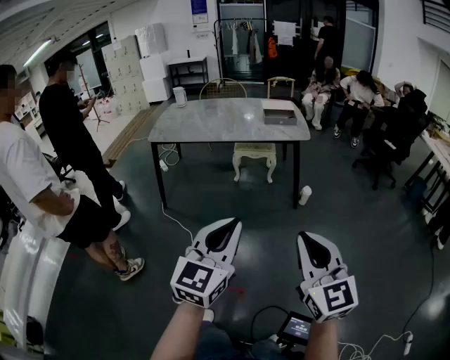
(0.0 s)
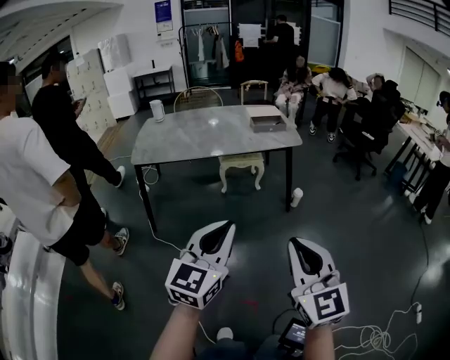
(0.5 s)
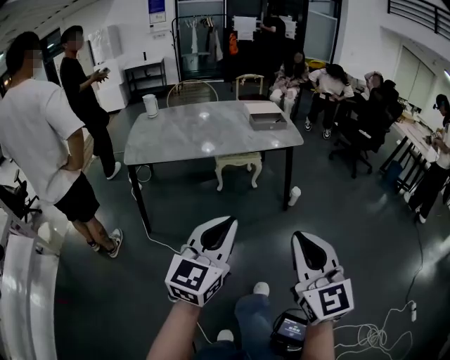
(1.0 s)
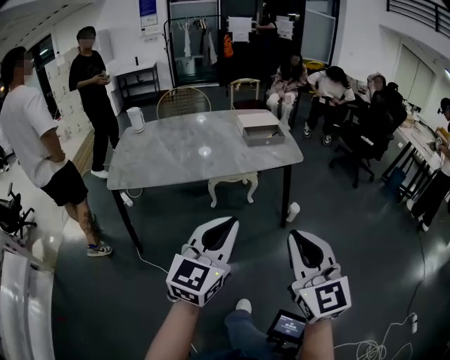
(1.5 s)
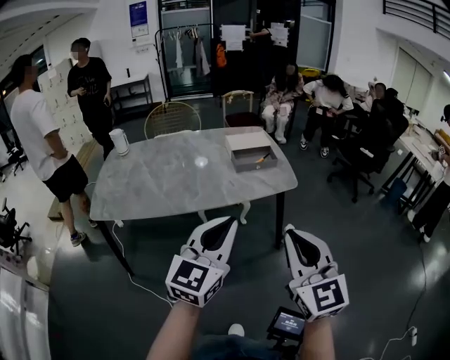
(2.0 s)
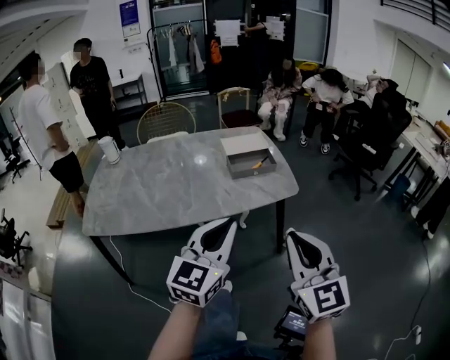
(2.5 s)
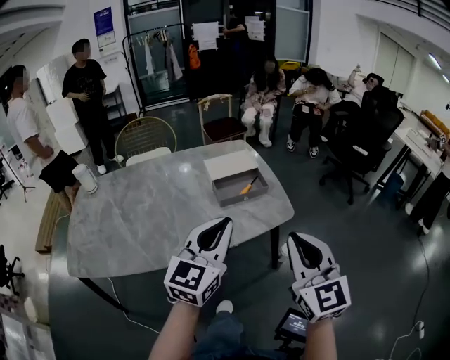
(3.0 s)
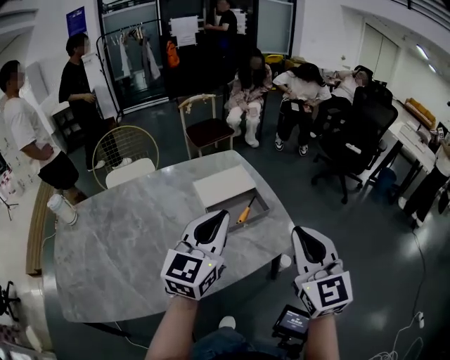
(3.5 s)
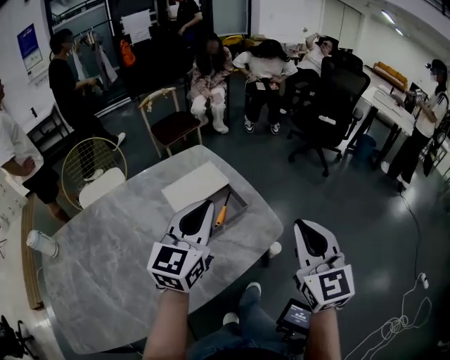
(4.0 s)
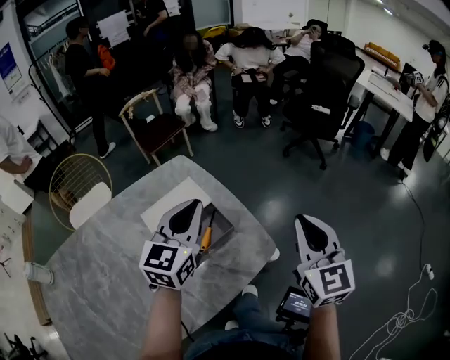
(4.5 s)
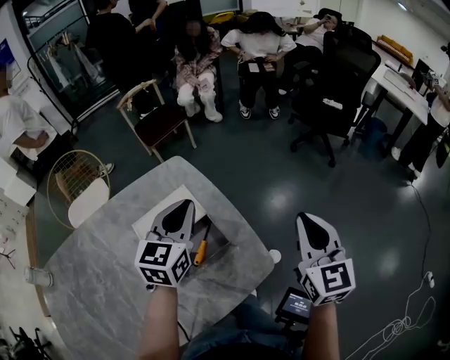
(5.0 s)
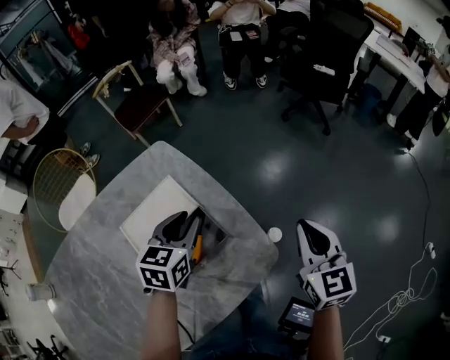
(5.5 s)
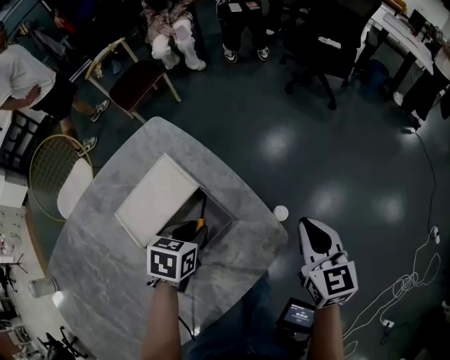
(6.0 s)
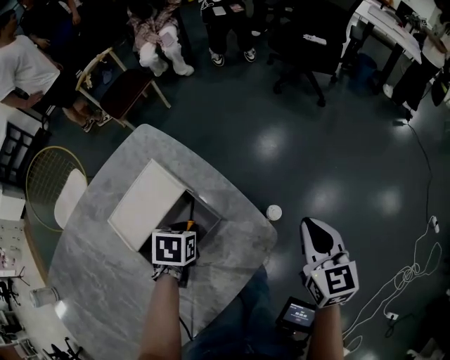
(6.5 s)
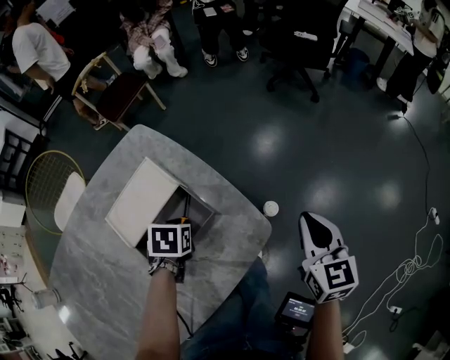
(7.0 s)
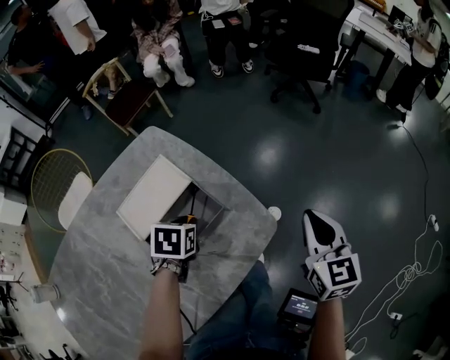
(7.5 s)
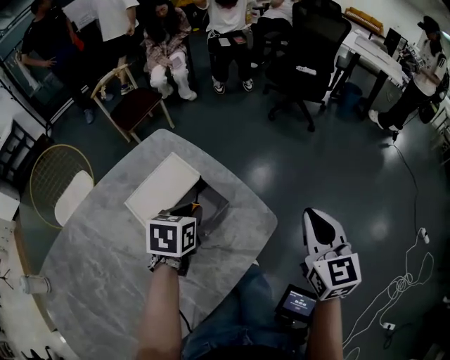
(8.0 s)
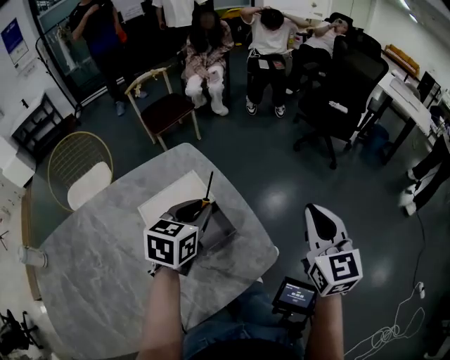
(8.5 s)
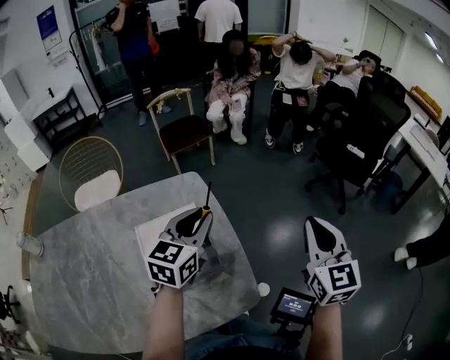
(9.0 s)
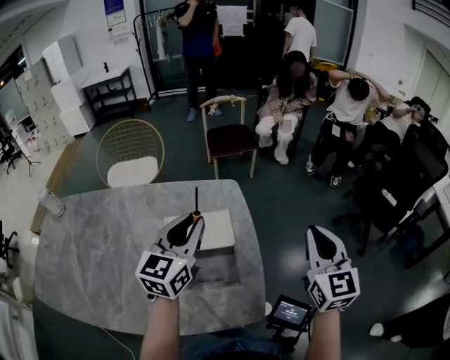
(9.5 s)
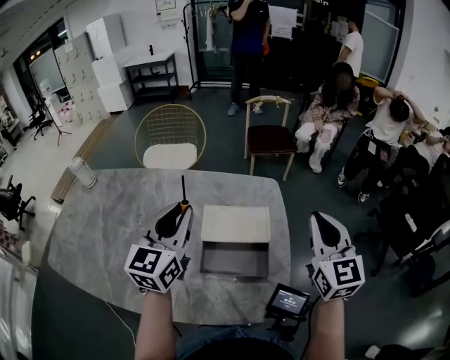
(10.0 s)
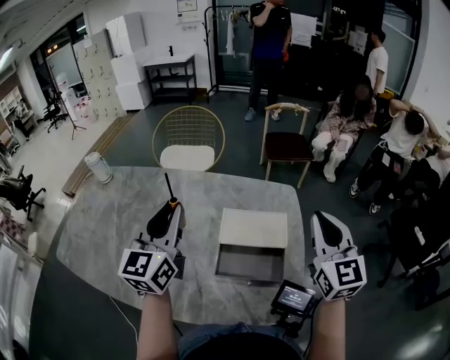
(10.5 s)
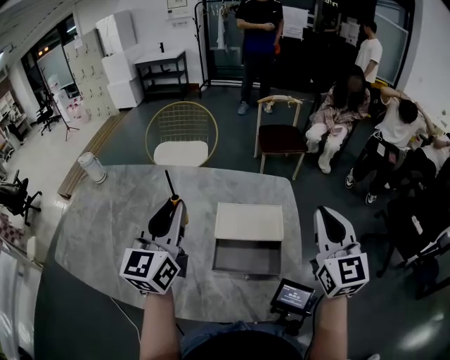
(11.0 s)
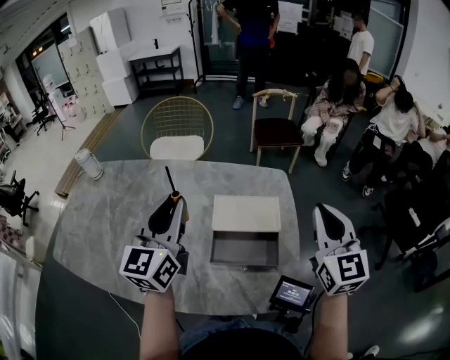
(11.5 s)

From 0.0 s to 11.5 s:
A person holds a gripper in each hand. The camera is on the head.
From 0.0 s to 2.0 s: Both grippers move forward, some 40 cm.
From 2.0 s to 4.0 s: Both grippers move forward, some 40 cm. The right gripper swivels approximately 30 degrees.
From 4.0 s to 6.0 s: The left gripper shifts some 30 cm downward, points its fingers roughly 50 degrees further downward, and opens up; the right gripper travels downward and forward by roughly 25 cm, and turns by about 30 degrees.
From 6.0 s to 7.5 s: The right gripper ends up about 5 cm from where it was.
From 7.5 s to 9.5 s: The left gripper moves upward, some 25 cm, and angles its fingers upward, by some 60 degrees, while the right gripper ends up approximately 25 cm from where it was, and turns by some 40 degrees.
From 9.5 s to 11.5 s: Both grippers travel together to the left, some 15 cm. The left gripper turns by roughly 20 degrees.

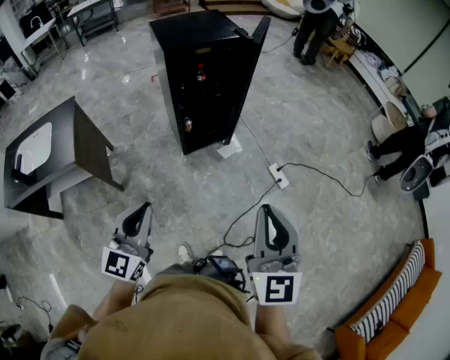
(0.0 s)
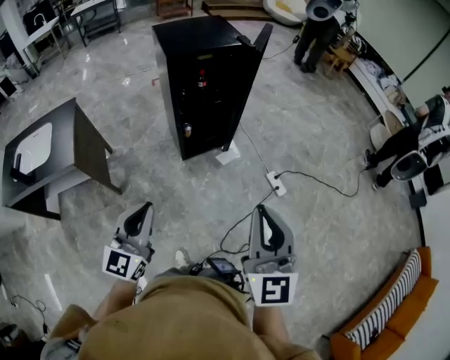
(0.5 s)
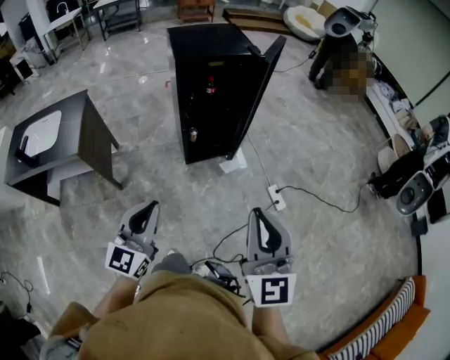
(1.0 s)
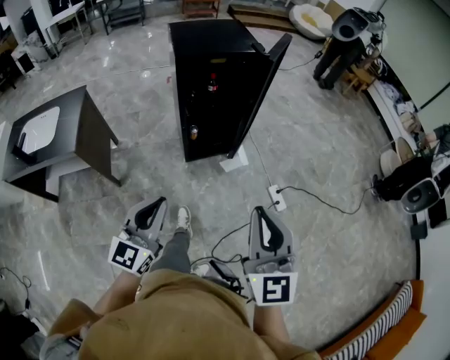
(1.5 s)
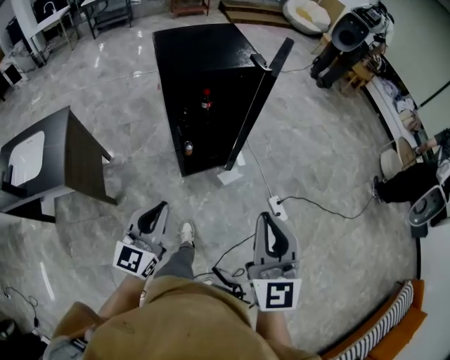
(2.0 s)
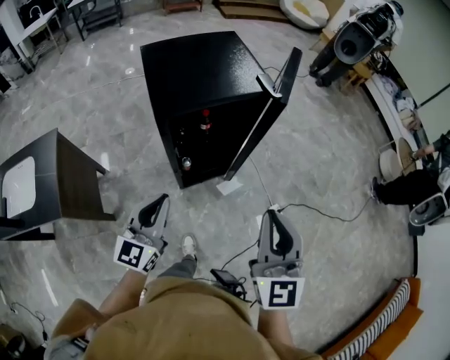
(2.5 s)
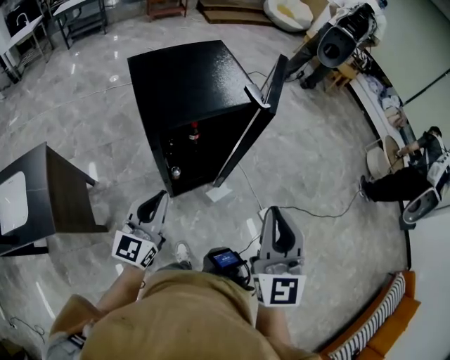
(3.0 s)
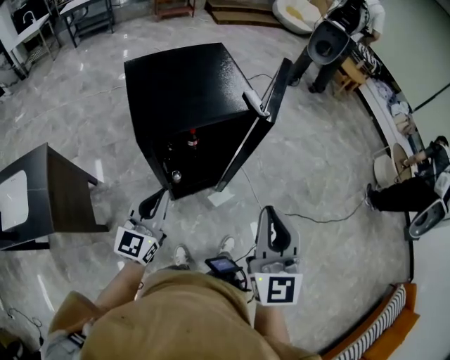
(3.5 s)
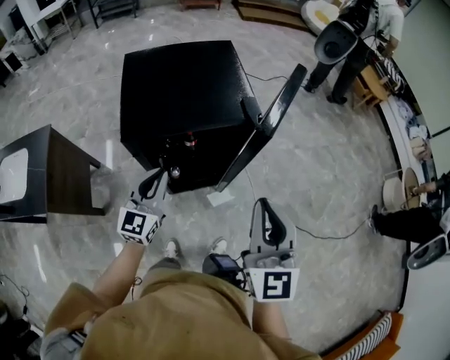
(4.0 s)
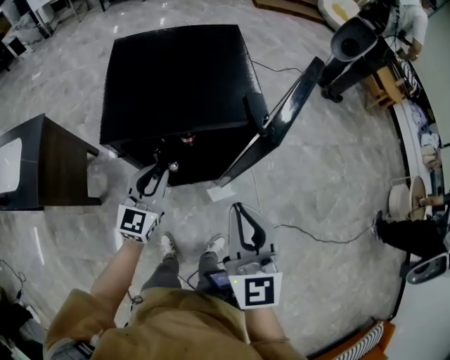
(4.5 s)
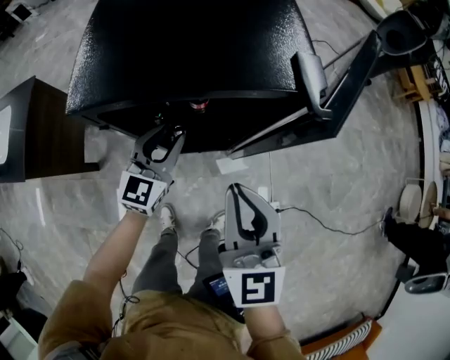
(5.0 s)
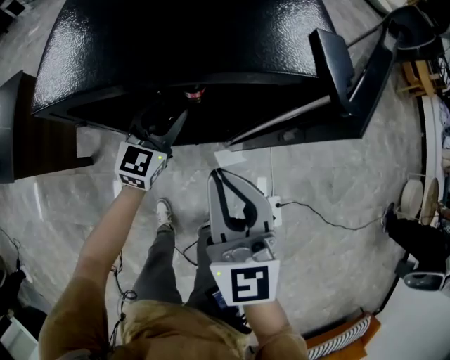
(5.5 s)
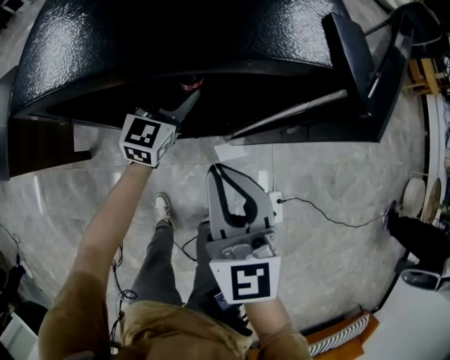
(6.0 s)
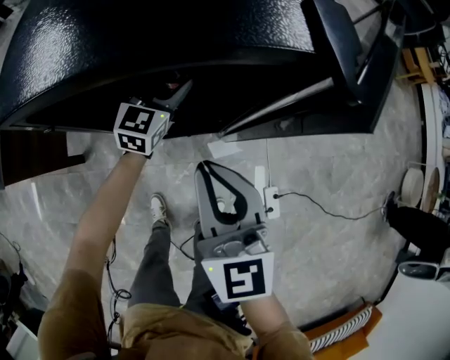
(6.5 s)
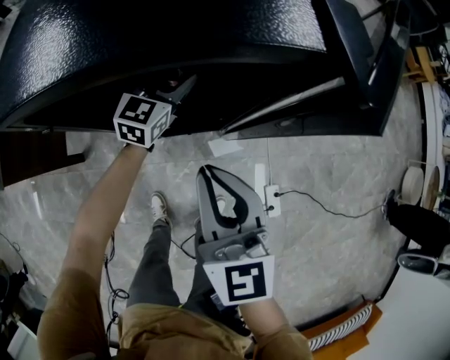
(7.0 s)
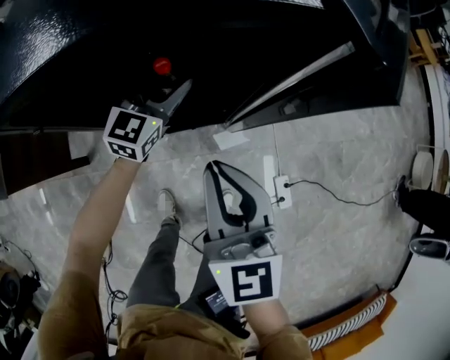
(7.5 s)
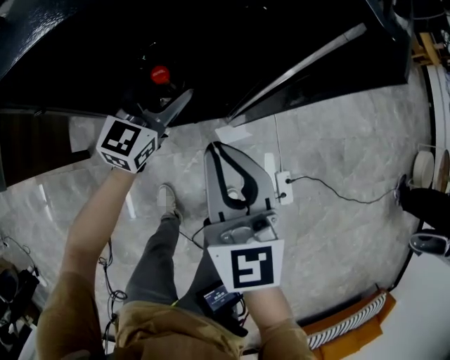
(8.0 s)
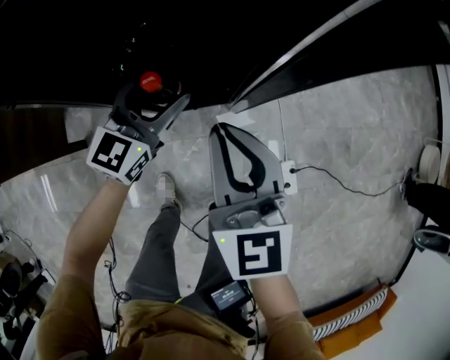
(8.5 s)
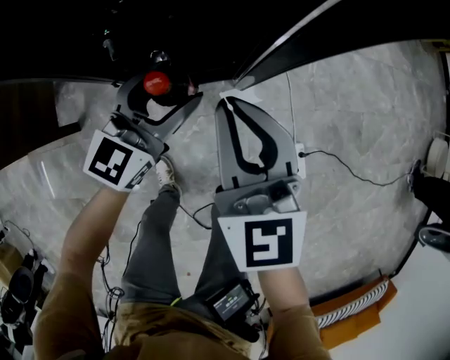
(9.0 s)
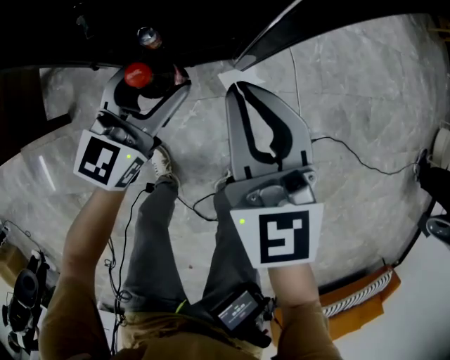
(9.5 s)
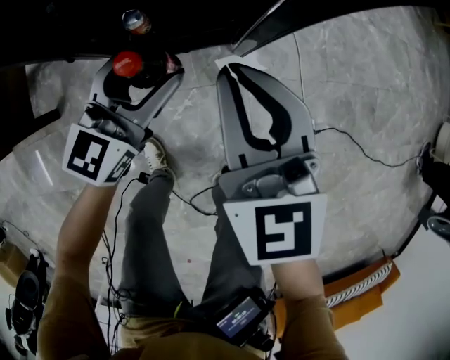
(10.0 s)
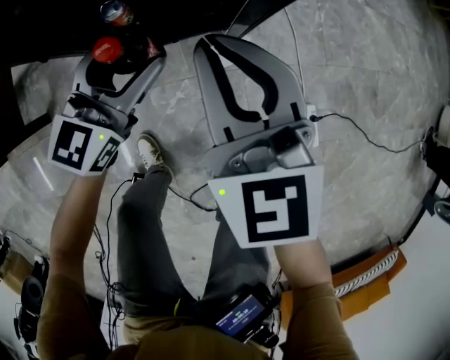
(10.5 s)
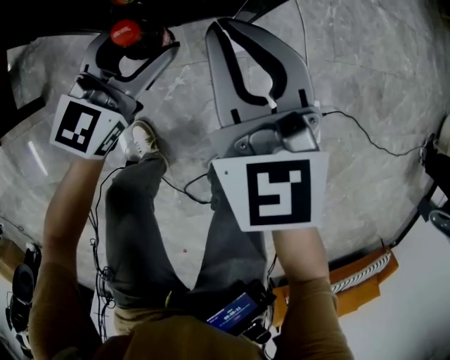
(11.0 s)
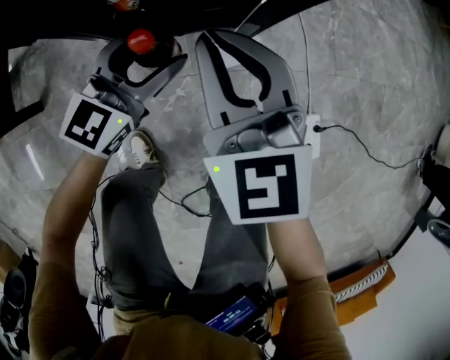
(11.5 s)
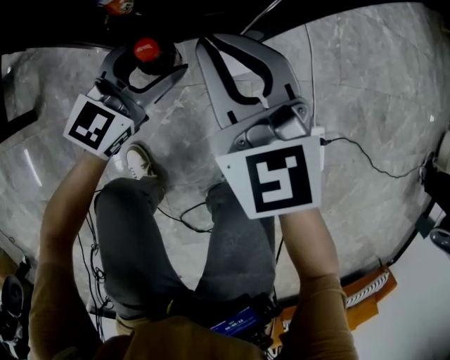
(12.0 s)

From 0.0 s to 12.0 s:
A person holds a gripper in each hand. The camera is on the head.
From 0.0 s to 2.0 s: Both grippers move forward, approximately 25 cm.
From 2.0 s to 4.0 s: Both grippers move forward, roughly 35 cm.
From 4.0 s to 6.0 s: The grippers both shift downward and forward by some 30 cm. The right gripper changes its angle by about 20 degrees. The left gripper opens up.
From 6.0 s to 8.0 s: The left gripper shifts about 5 cm backward.
From 8.0 s to 10.0 s: The left gripper heads downward and backward, covering roughly 25 cm. The right gripper shifts some 30 cm downward.
From 10.0 s to 12.0 s: Both grippers move downward, roughly 20 cm.

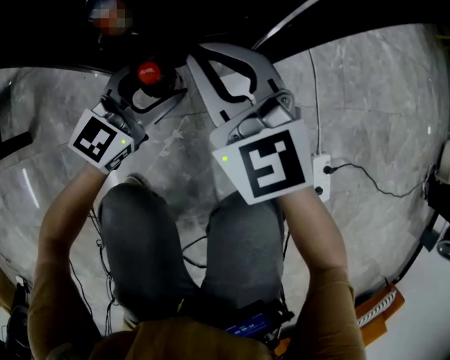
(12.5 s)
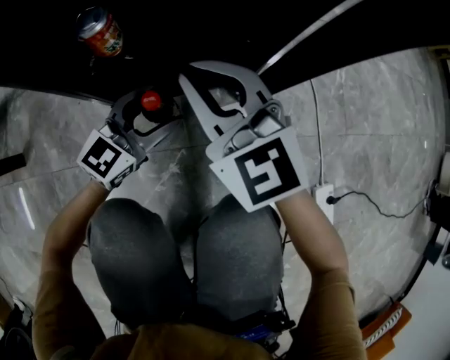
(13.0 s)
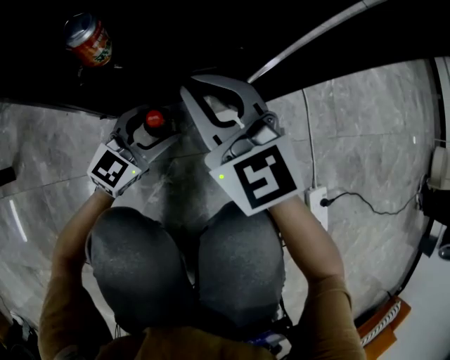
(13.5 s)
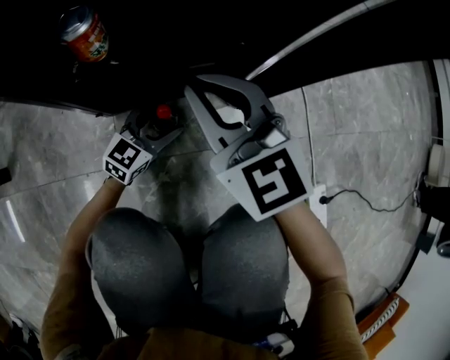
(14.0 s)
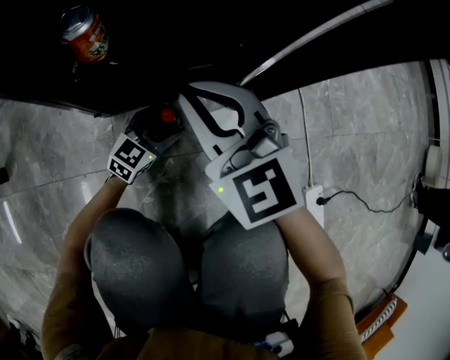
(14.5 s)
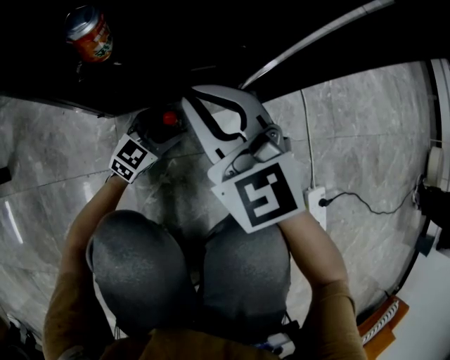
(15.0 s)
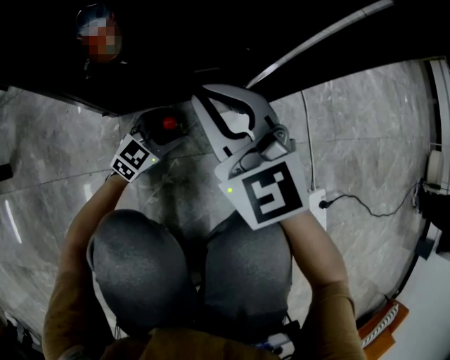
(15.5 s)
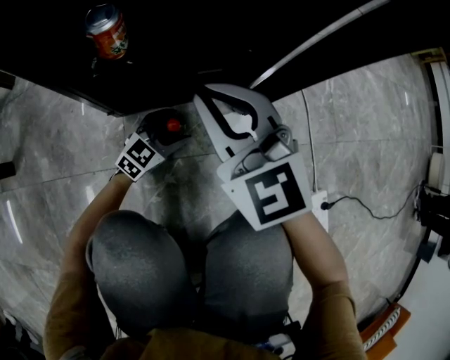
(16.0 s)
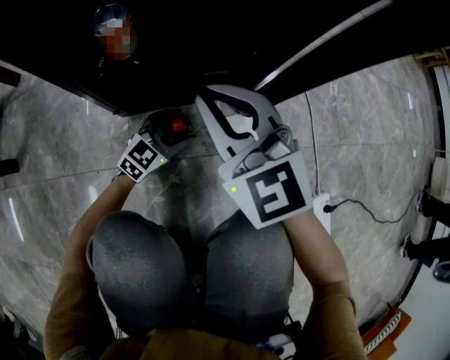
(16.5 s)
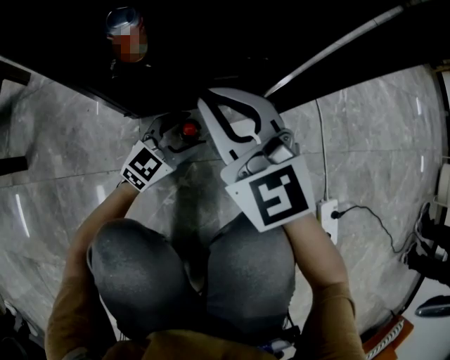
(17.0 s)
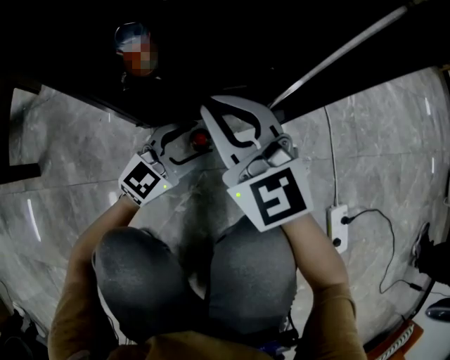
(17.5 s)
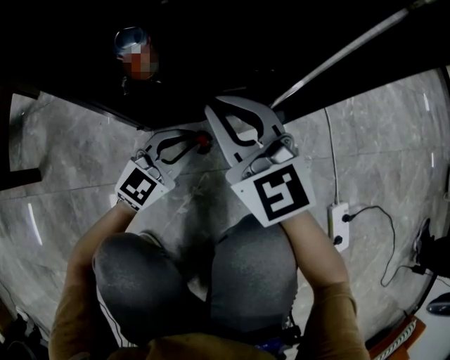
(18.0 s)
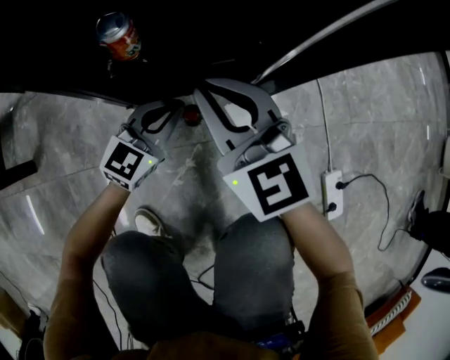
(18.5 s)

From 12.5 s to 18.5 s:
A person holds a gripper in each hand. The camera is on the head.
From 12.5 s to 14.5 s: The right gripper shifts roughly 10 cm downward. Meanwhile the left gripper moves downward, roughly 25 cm.
From 14.5 s to 16.5 s: The grippers stay close to where they were, moving slightly.
From 16.5 s to 18.5 s: The left gripper moves upward, about 15 cm, and closes.
